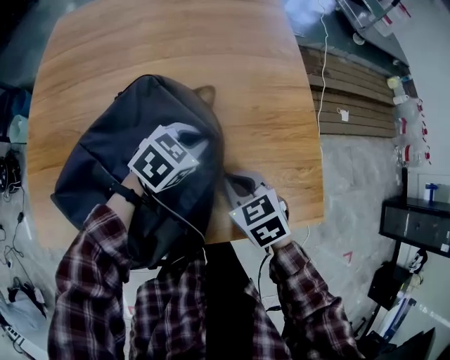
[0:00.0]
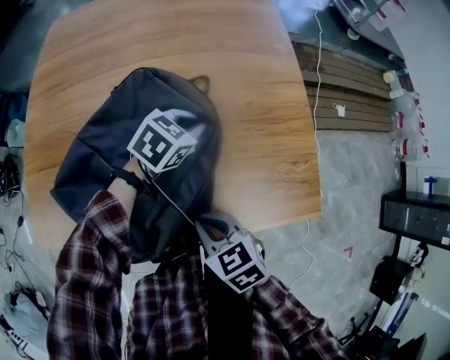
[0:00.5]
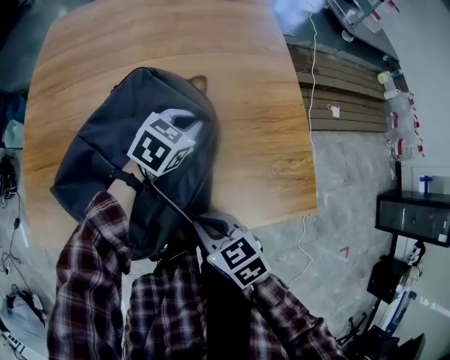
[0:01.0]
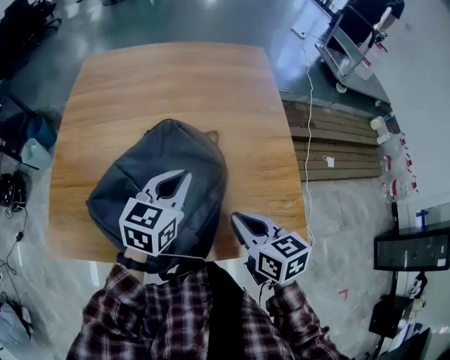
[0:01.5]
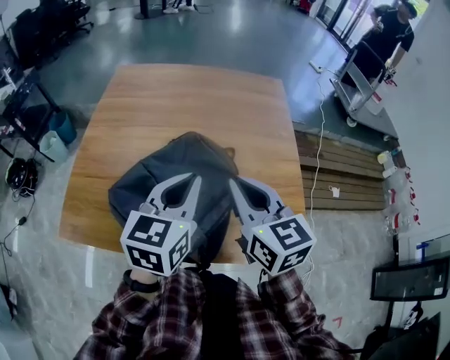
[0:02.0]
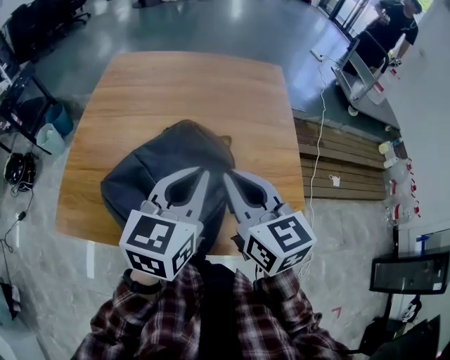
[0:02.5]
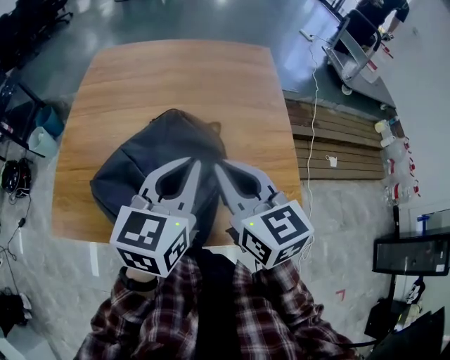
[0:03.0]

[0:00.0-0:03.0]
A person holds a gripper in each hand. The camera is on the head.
0.0 to 1.5 s: The right gripper is displaced upward by approximately 15 cm, and swivels roughly 30 degrees. The left gripper moves upward and to the left, roughly 15 cm, and changes its angle by roughly 40 degrees.
1.5 to 3.0 s: The left gripper heads upward and backward, covering roughly 15 cm, while the right gripper moves upward, some 15 cm, and changes its angle by about 20 degrees.

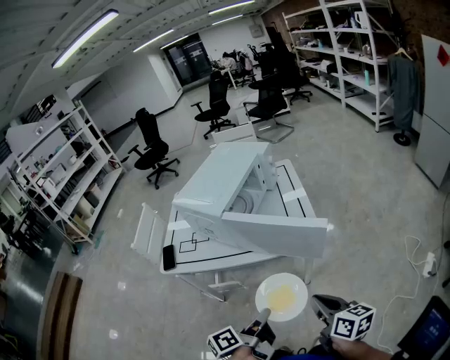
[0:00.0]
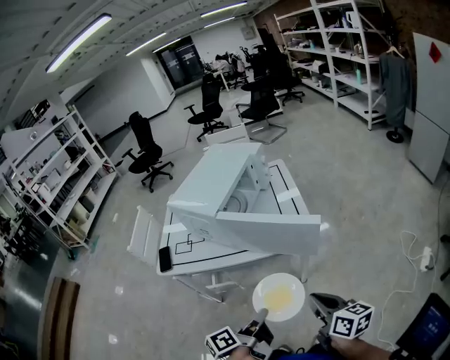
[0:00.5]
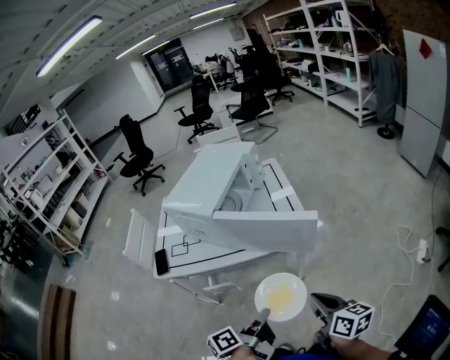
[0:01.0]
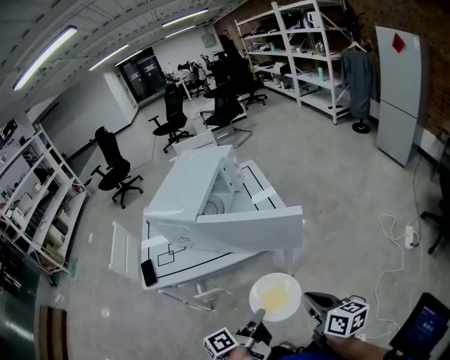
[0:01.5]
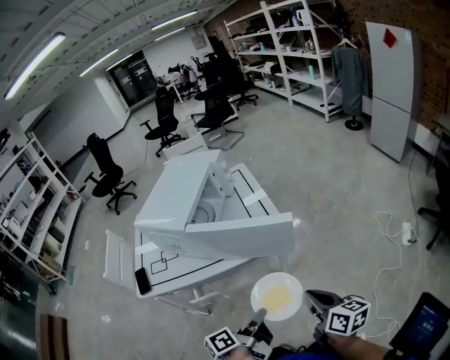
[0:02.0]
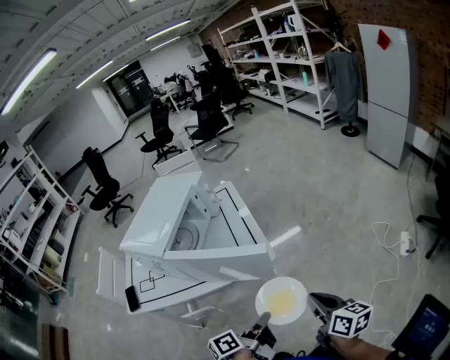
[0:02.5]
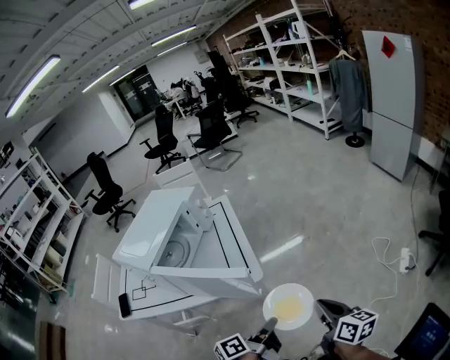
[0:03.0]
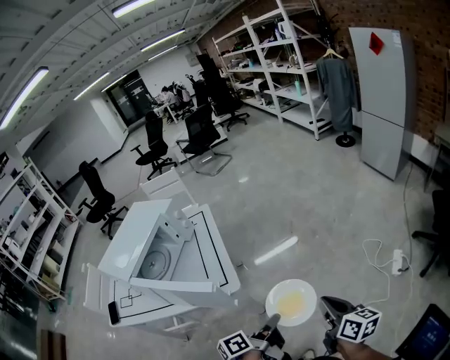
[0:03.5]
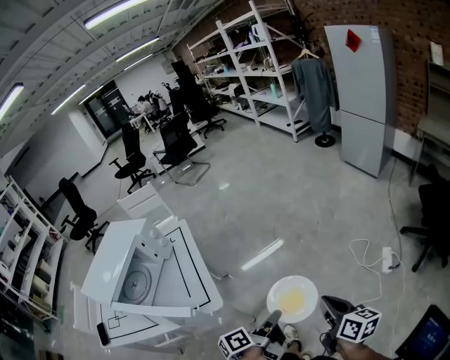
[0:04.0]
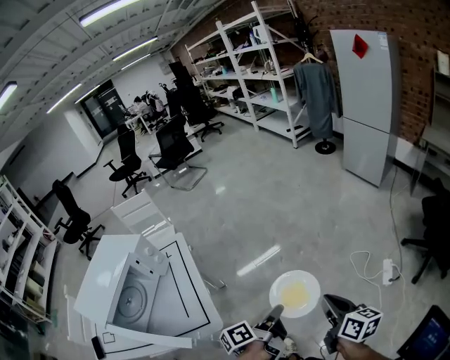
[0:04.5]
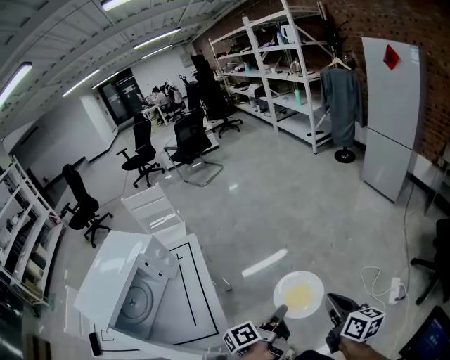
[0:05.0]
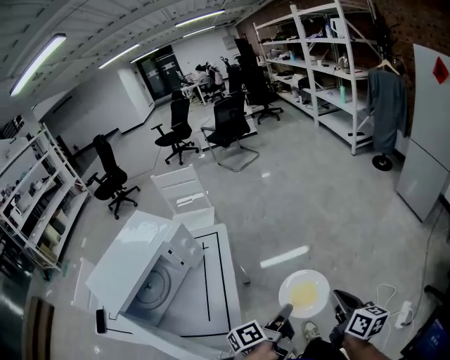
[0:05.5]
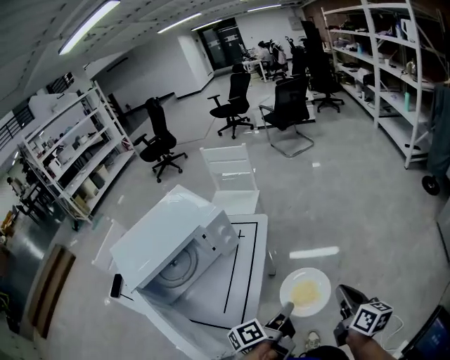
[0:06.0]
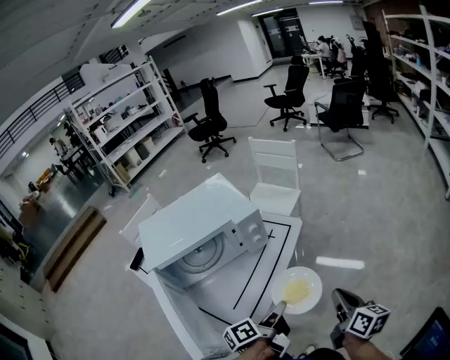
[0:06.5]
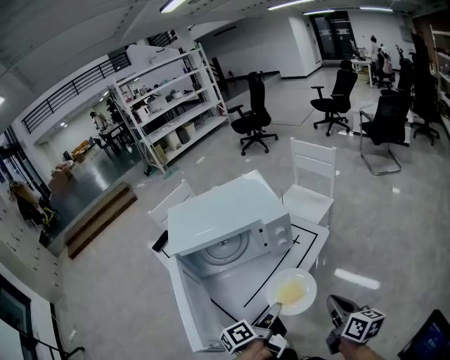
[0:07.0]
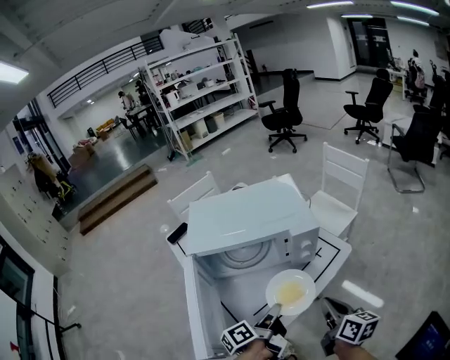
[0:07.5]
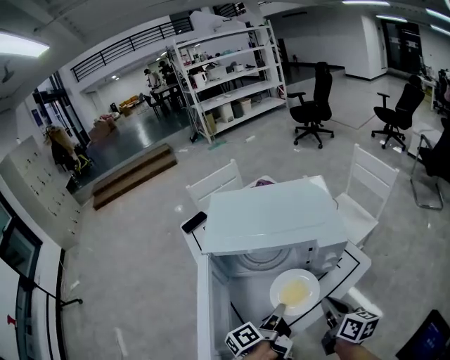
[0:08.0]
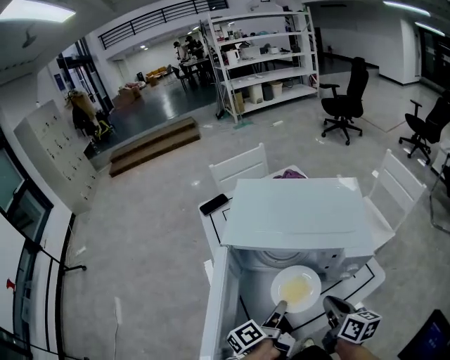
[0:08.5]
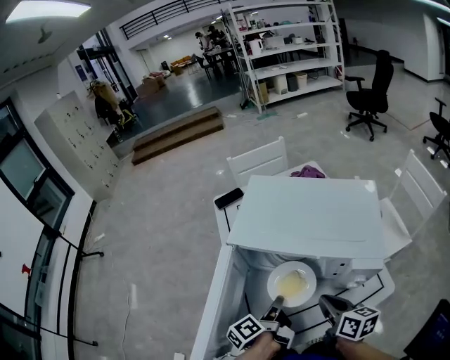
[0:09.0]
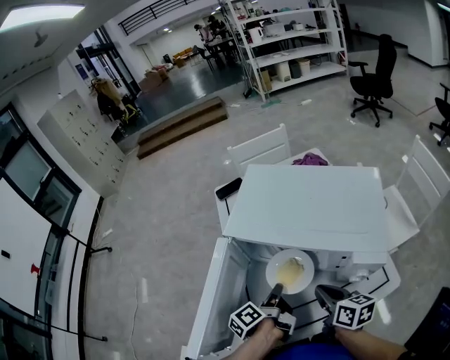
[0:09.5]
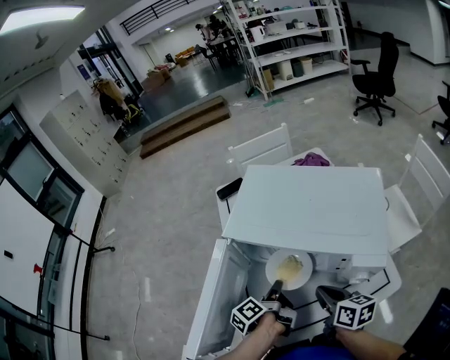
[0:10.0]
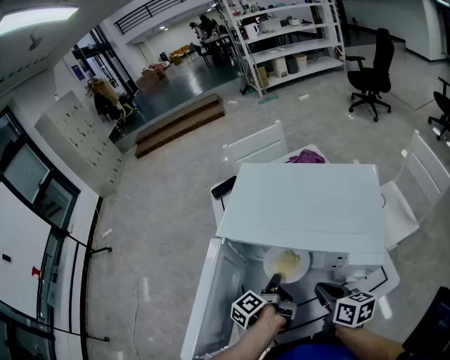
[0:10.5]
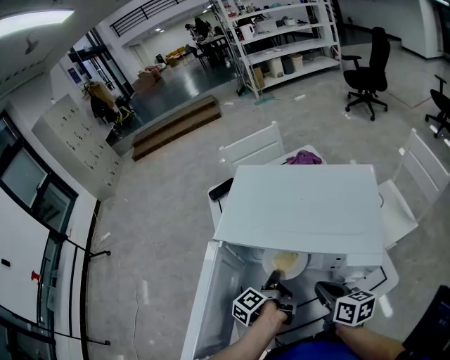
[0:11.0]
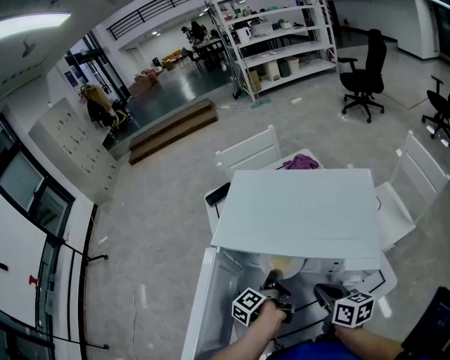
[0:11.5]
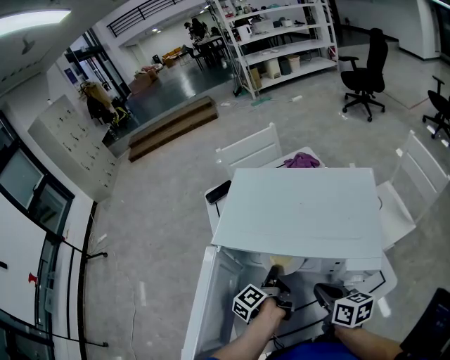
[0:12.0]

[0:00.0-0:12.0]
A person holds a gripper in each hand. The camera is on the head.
0.0 to 2.0 s: There are only small adjustments of the grippers.
2.0 to 4.0 s: The grippers both shift to the right and forward by some 40 cm.
4.0 to 6.0 s: The left gripper changes place by some 30 cm, and rotates about 30 degrees. Meanwhile the right gripper moves approximately 40 cm, and rotates roughly 30 degrees.
6.0 to 8.0 s: The left gripper changes place by some 25 cm, and swivels about 60 degrees. Meanwhile the right gripper changes place by about 35 cm, and changes its angle by about 60 degrees.
8.0 to 10.0 s: The left gripper ends up roughly 15 cm from where it was, and swivels roughly 30 degrees; the right gripper changes place by about 15 cm, and turns by roughly 30 degrees.
10.0 to 12.0 s: The left gripper is displaced forward by some 5 cm.

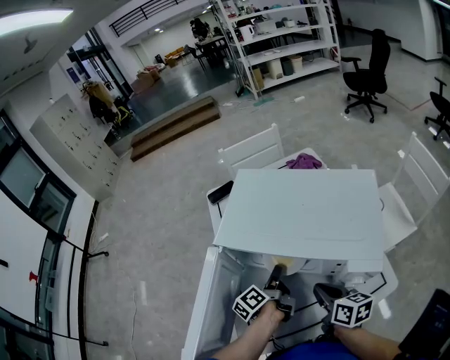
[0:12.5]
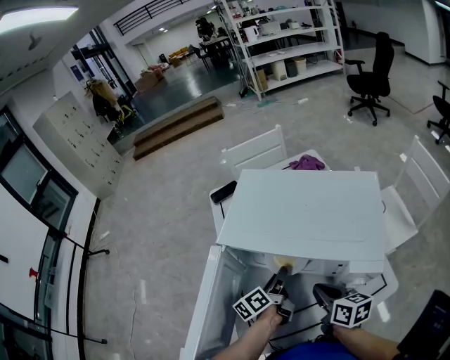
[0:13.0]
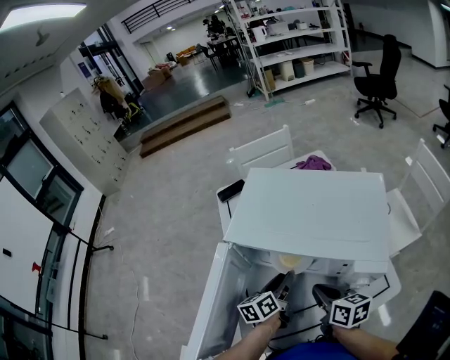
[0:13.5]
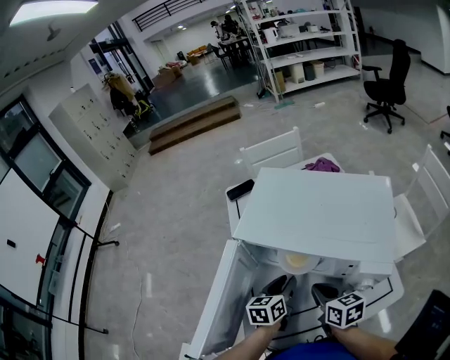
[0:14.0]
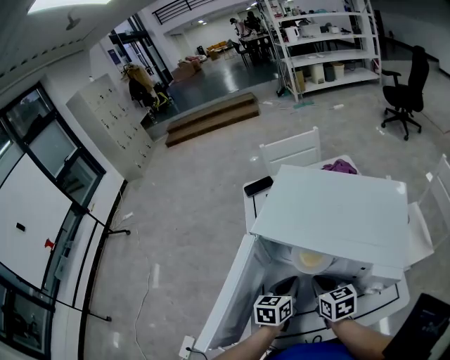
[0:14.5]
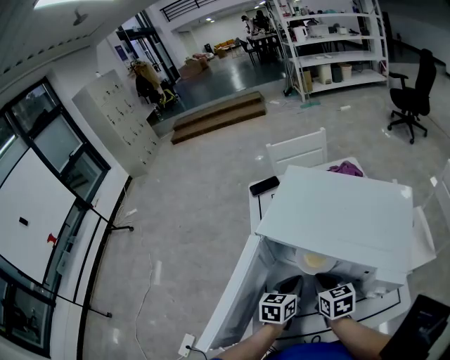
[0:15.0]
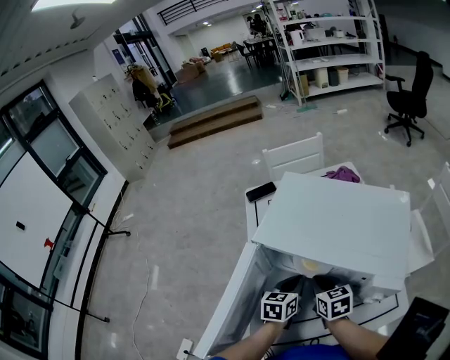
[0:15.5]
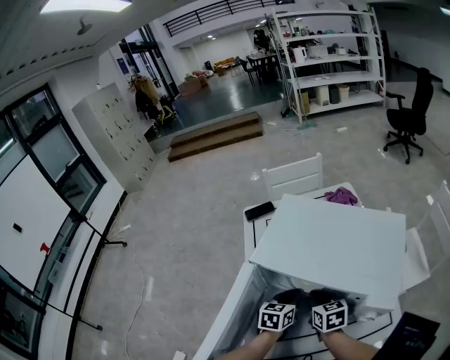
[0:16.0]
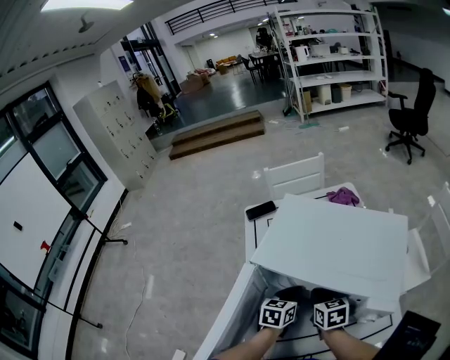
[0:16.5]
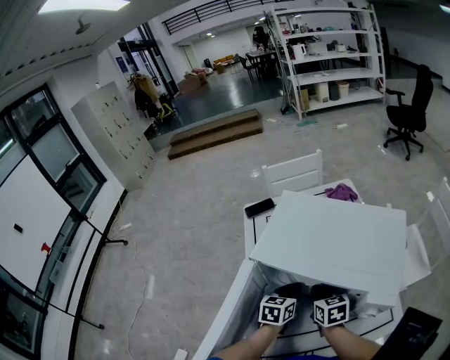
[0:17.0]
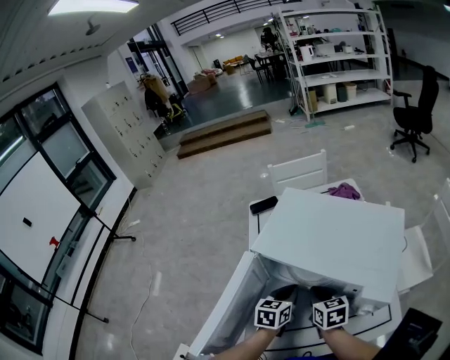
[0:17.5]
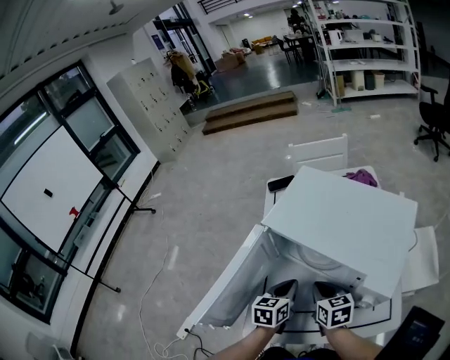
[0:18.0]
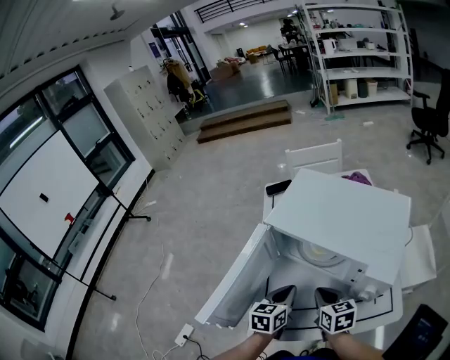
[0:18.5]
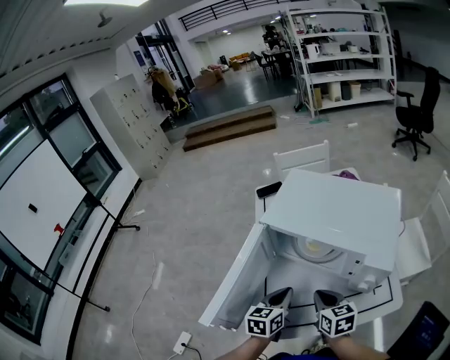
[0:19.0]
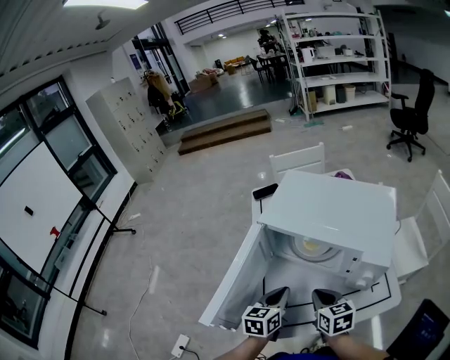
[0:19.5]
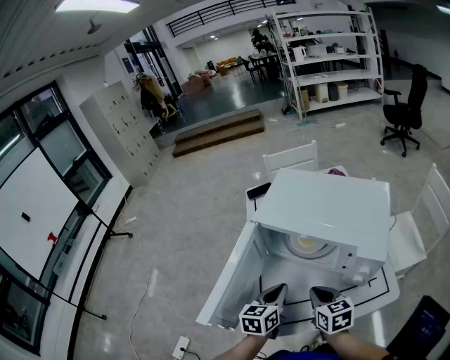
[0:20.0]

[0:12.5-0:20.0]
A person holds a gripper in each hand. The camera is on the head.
12.5 to 14.5 s: The right gripper moves to the left, approximately 5 cm, and swivels some 20 degrees, while the left gripper moves some 5 cm, rolls clockwise, seen from behind, by some 50 degrees, and opens, then closes once more.
14.5 to 16.5 s: Both grippers move forward, roughly 5 cm.
16.5 to 18.0 s: The grippers both shift backward by about 10 cm.
18.0 to 20.0 s: Both grippers move backward, some 5 cm.

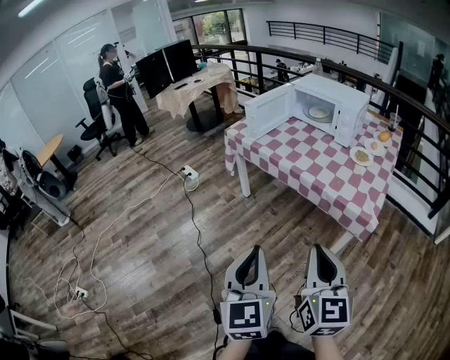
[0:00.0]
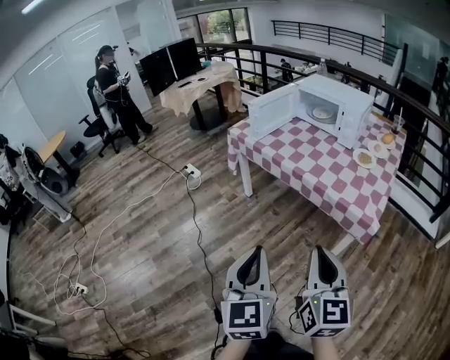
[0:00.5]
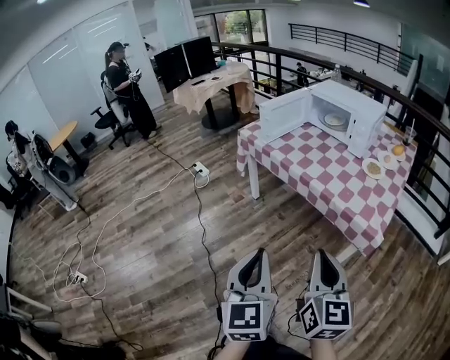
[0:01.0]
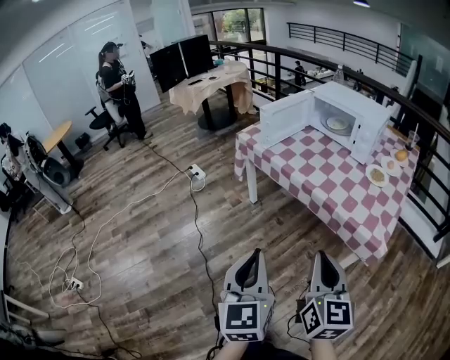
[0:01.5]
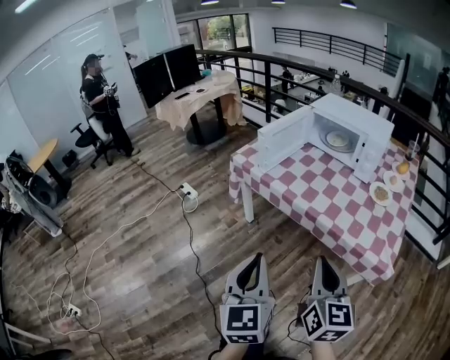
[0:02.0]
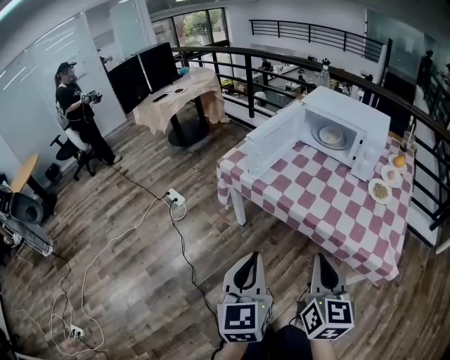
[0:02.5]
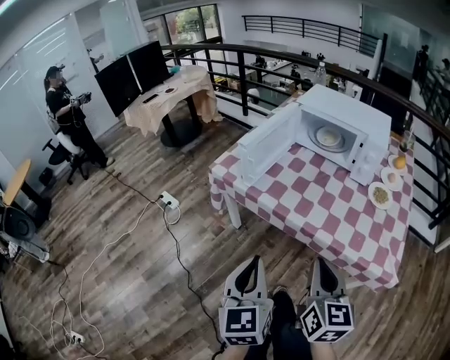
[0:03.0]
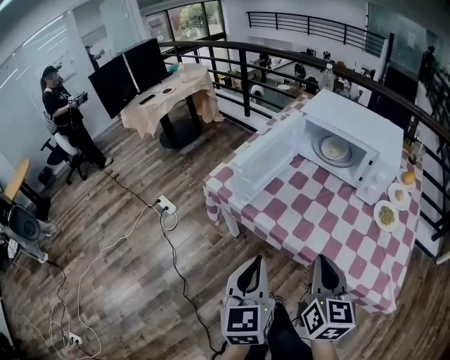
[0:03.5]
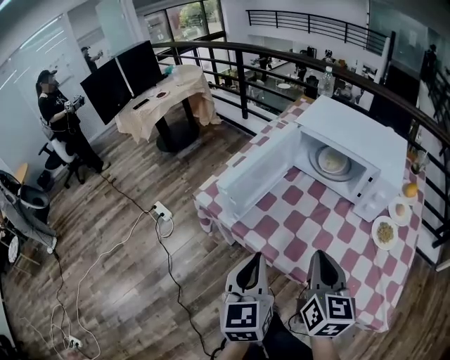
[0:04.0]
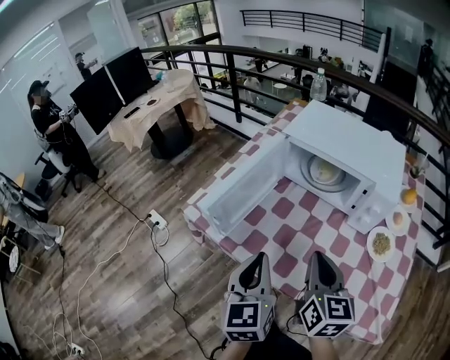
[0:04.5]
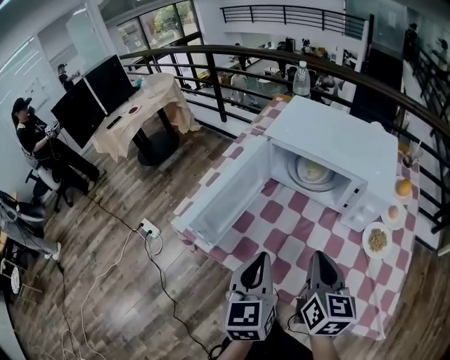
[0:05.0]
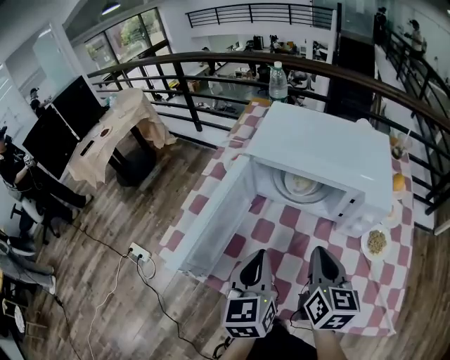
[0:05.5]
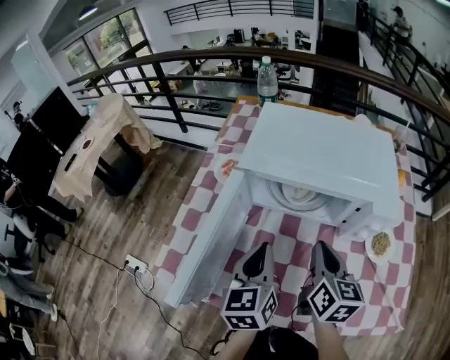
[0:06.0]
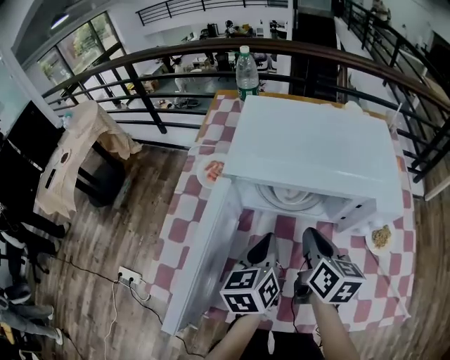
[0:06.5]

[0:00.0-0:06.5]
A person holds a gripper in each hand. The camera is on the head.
0.0 to 2.0 s: The two grippers go roughly 20 cm forward.
2.0 to 4.5 s: Both grippers move forward, roughly 40 cm.
4.5 to 6.5 s: The left gripper moves about 30 cm, and changes its angle by approximately 40 degrees; the right gripper changes place by approximately 25 cm, and turns by about 30 degrees.
